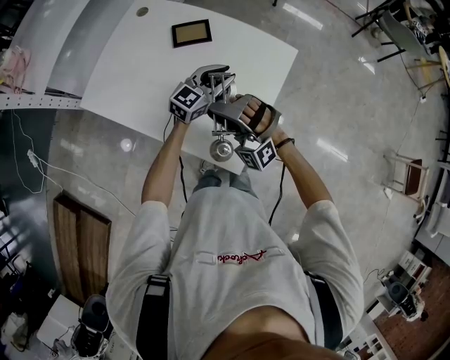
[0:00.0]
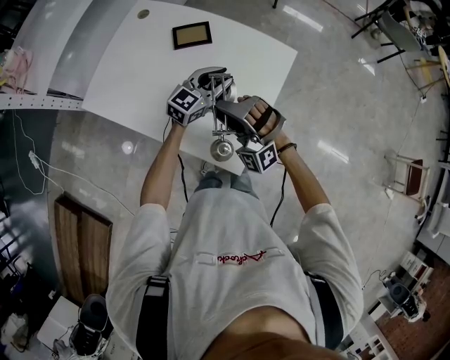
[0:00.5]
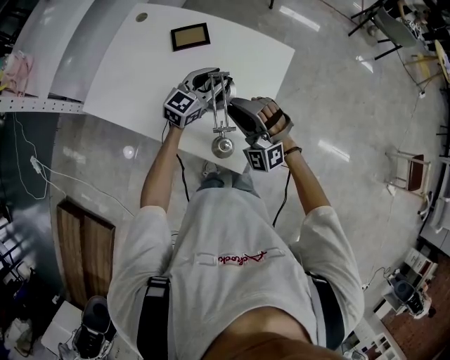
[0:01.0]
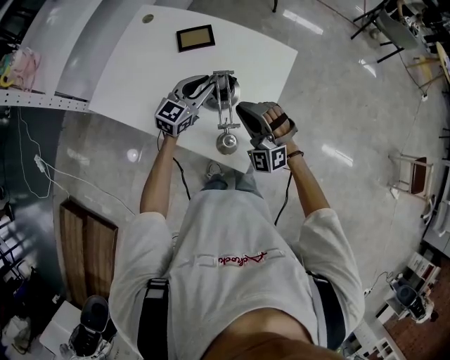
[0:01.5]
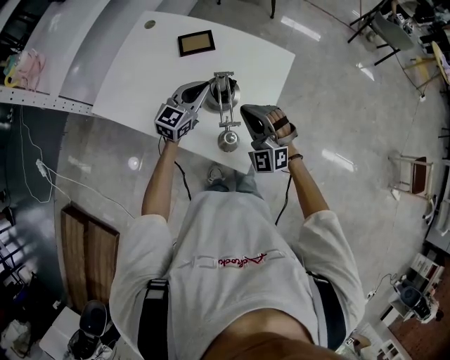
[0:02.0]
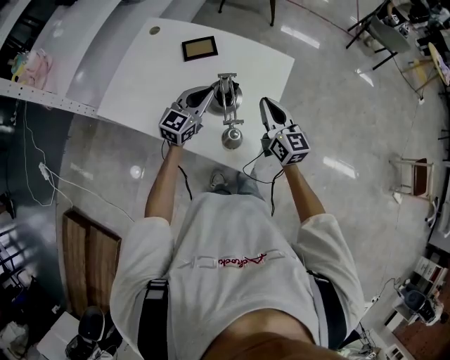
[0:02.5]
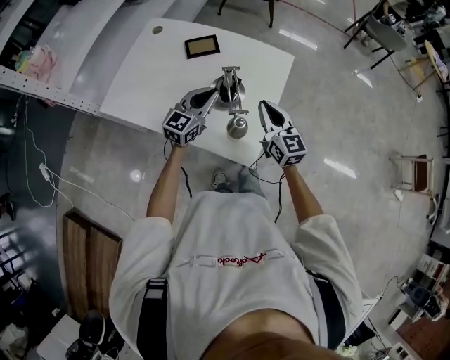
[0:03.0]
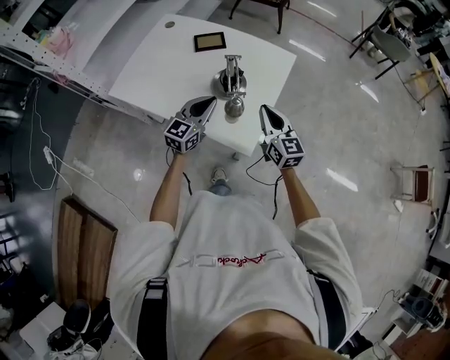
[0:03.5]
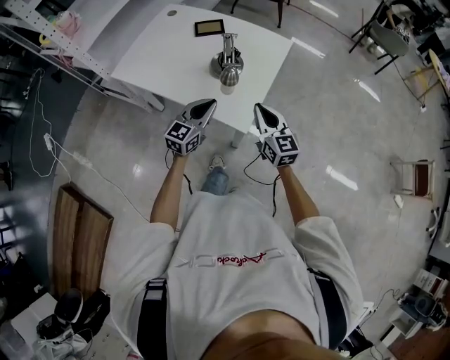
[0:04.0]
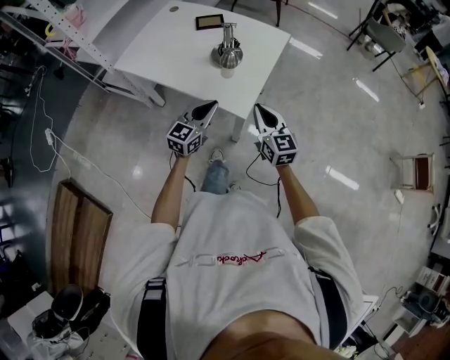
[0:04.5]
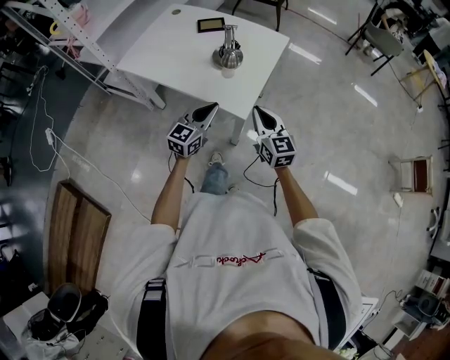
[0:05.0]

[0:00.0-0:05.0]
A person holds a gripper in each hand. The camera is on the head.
0:00.0 to 0:02.5: The right gripper shifts about 15 cm to the right, twists approximately 90 degrees clockwise, seen from behind, and closes its fingers. Meanwhile the left gripper moves to the left and backward, some 10 cm, and closes up.
0:02.5 to 0:05.0: Both grippers travel together backward, approximately 25 cm.

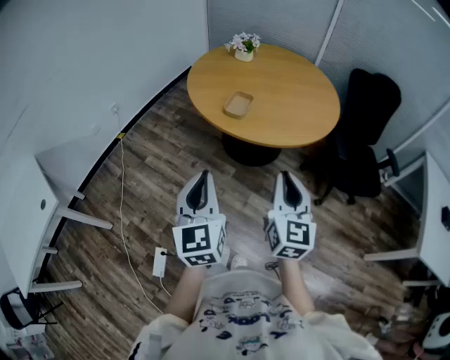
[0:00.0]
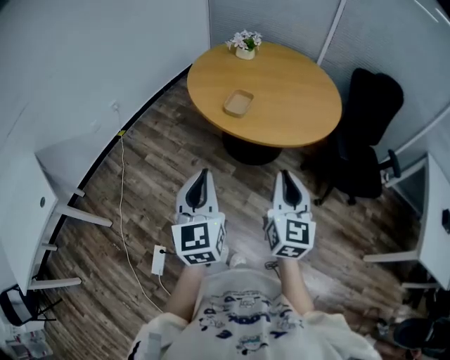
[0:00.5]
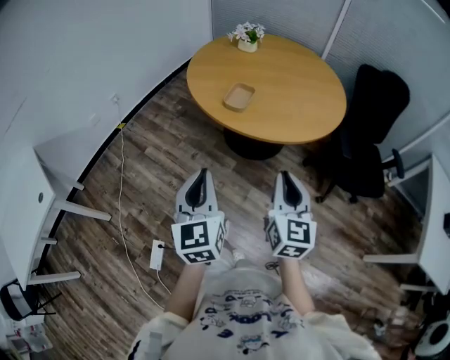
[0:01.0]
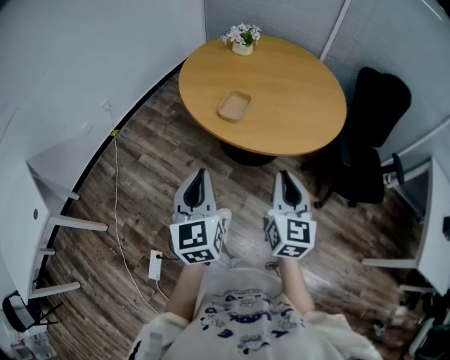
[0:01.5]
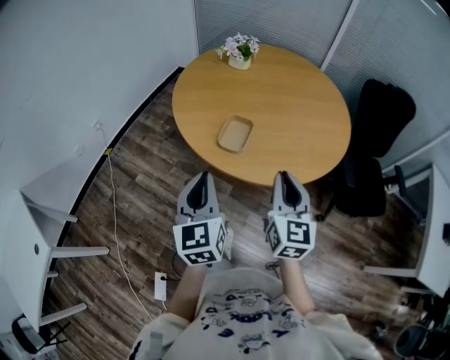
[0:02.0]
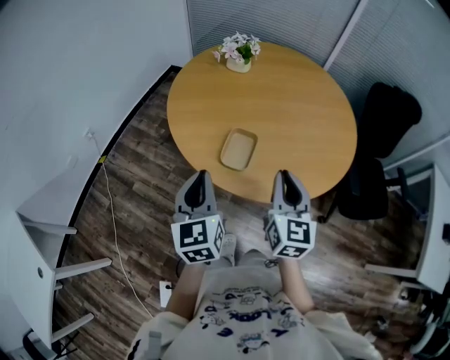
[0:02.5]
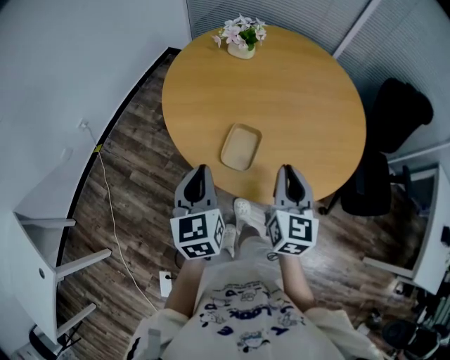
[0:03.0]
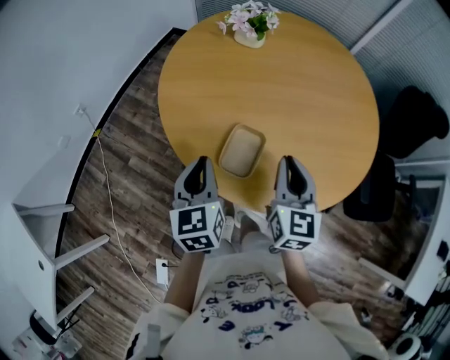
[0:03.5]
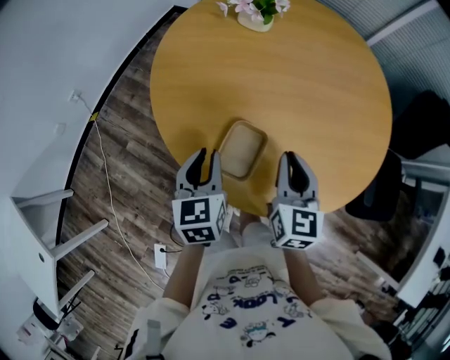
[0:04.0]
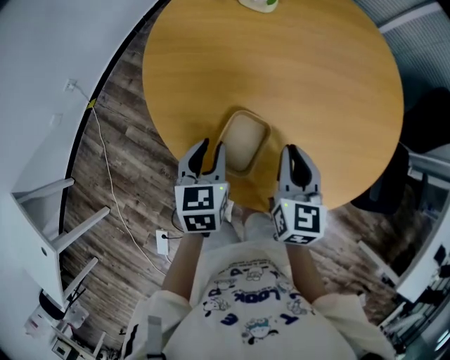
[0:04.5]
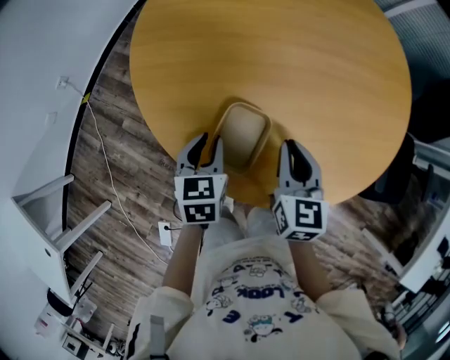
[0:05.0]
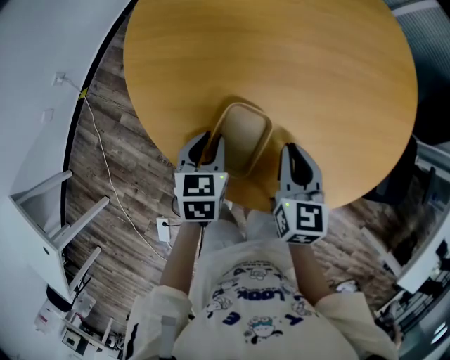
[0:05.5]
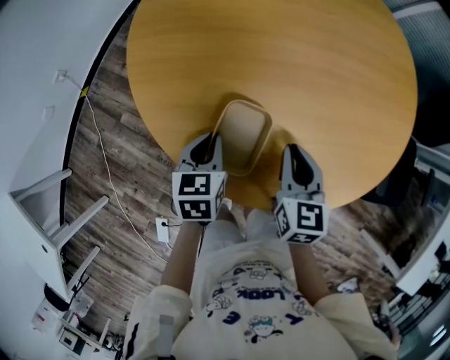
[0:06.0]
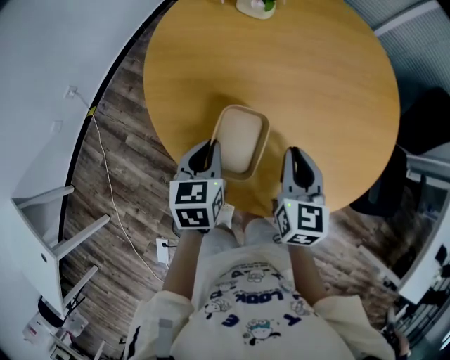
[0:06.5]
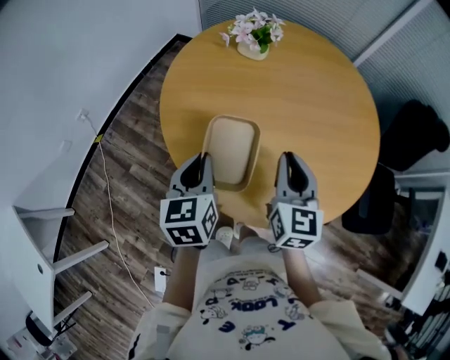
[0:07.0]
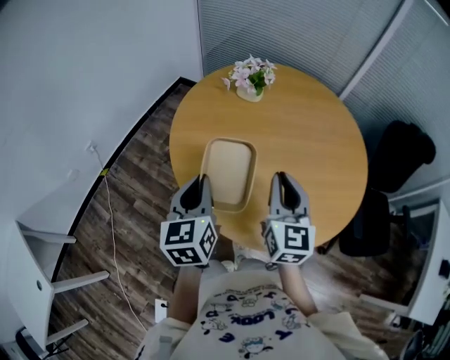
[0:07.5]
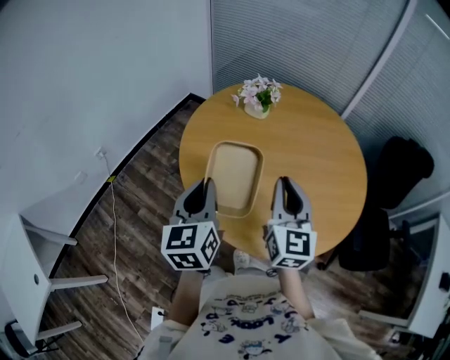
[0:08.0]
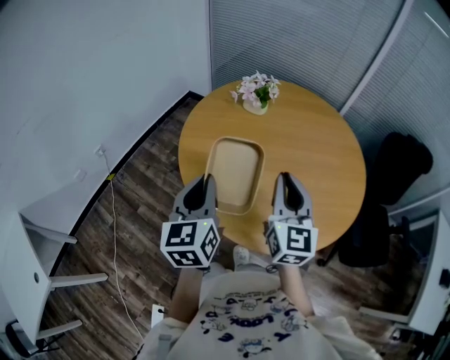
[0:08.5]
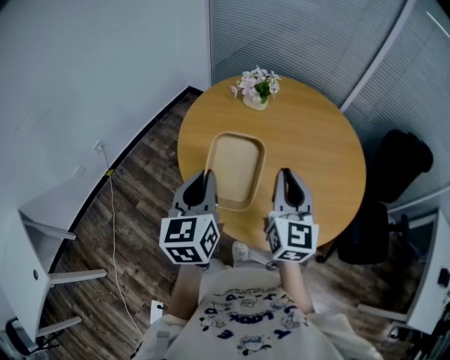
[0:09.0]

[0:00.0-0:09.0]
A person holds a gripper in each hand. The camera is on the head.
0:00.0 to 0:02.0: The grippers both shift forward by some 25 cm.
0:02.0 to 0:04.5: The grippers both shift forward and downward by about 30 cm. The left gripper changes its angle by roughly 30 degrees, and opens.
0:04.5 to 0:07.0: Both grippers travel together upward, some 10 cm.
0:07.0 to 0:09.0: Both grippers move upward, some 10 cm.

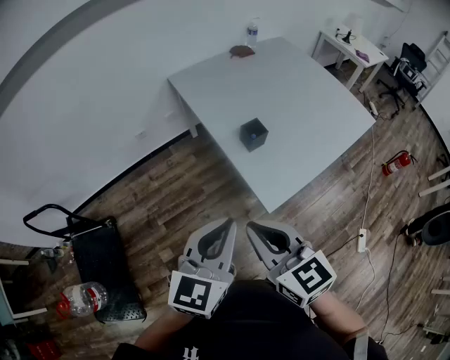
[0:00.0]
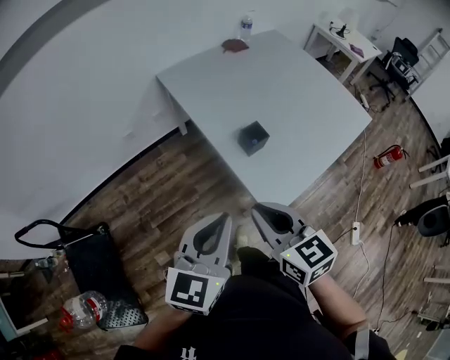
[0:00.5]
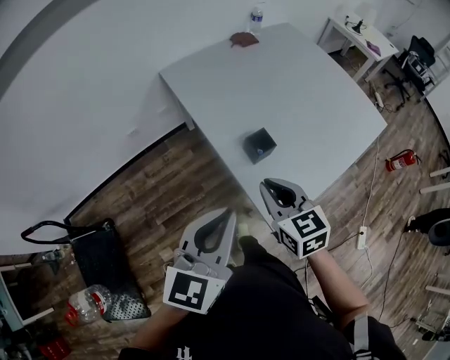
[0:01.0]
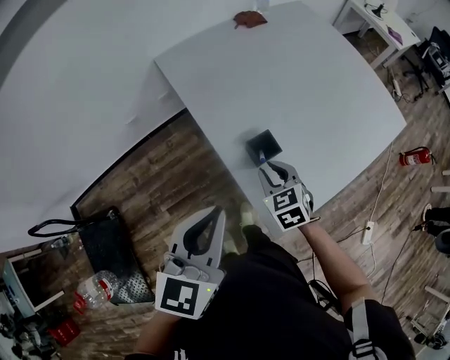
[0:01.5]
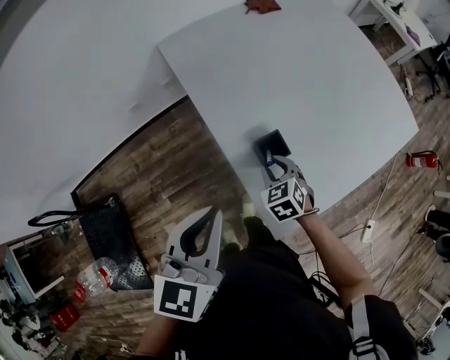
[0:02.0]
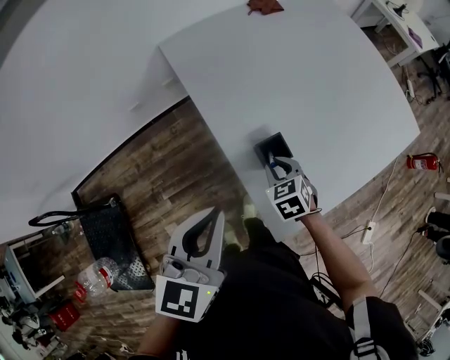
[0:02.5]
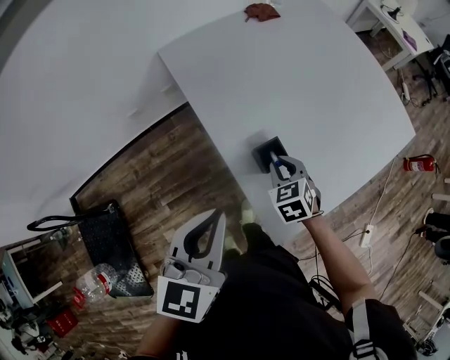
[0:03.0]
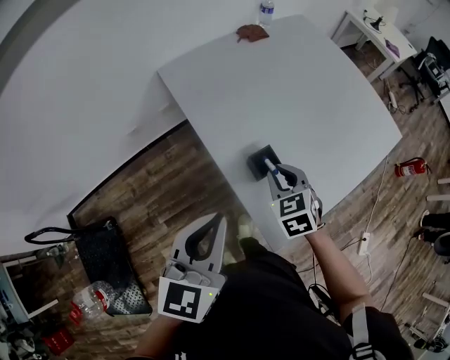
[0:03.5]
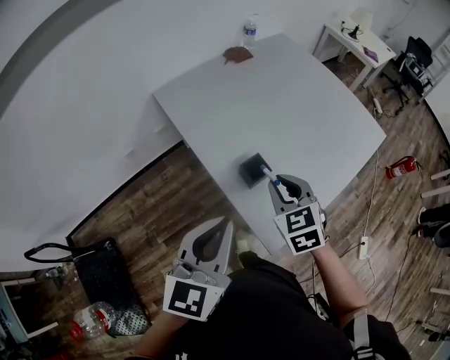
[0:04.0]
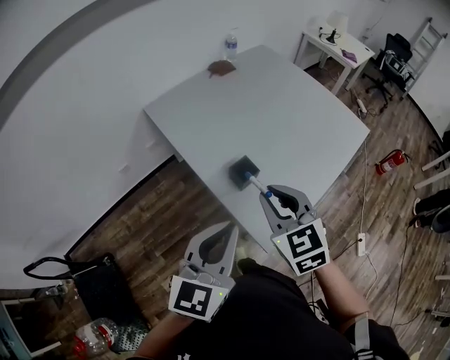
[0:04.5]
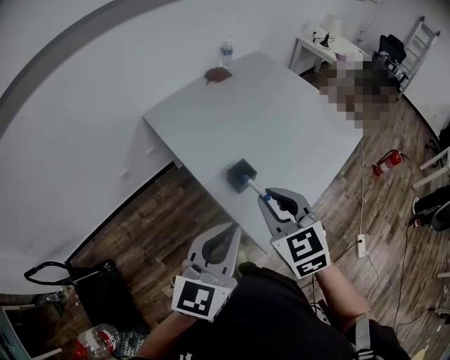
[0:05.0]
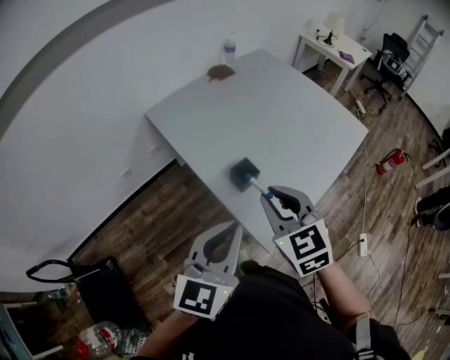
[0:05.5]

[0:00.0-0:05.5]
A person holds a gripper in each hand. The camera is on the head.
0:00.0 to 0:02.0: The left gripper heads forward, covering some 20 cm, while the right gripper goes some 40 cm forward and downward, tips its fingers downward by approximately 40 degrees, and opens its fingers.
0:02.0 to 0:03.5: The right gripper shifts approximately 10 cm upward.
0:03.5 to 0:05.5: The left gripper goes about 10 cm to the right and backward. The right gripper goes roughly 20 cm upward and backward.

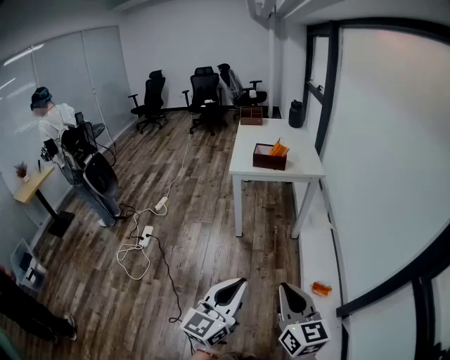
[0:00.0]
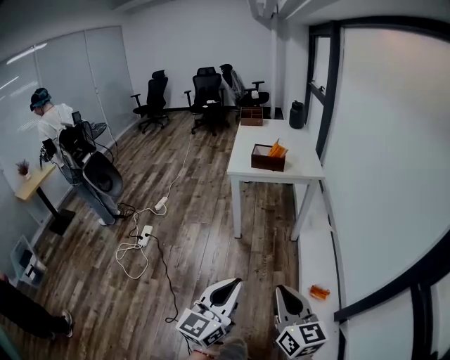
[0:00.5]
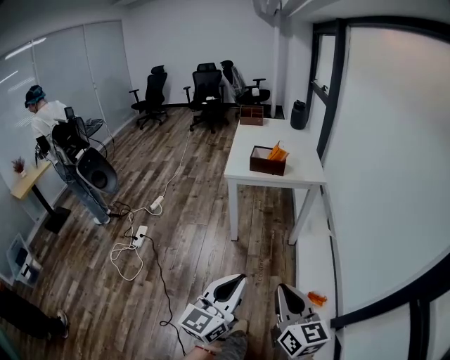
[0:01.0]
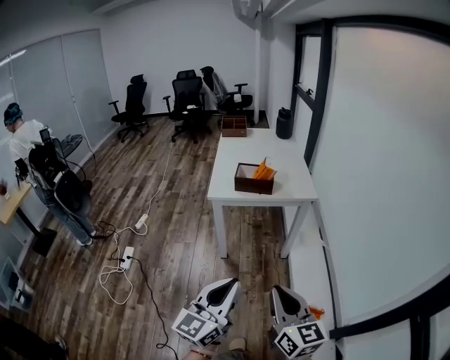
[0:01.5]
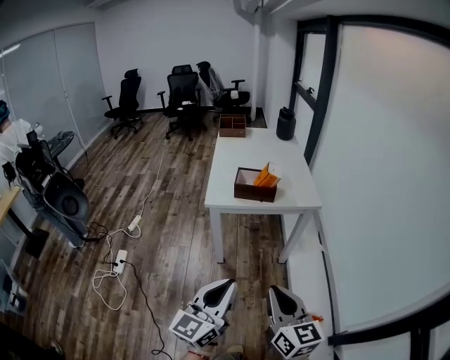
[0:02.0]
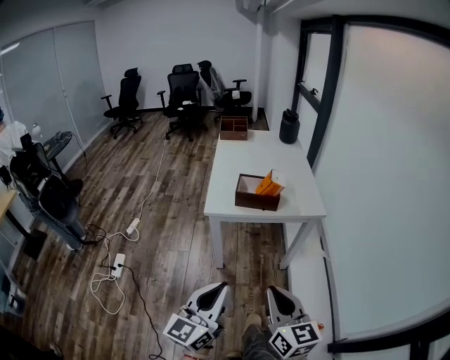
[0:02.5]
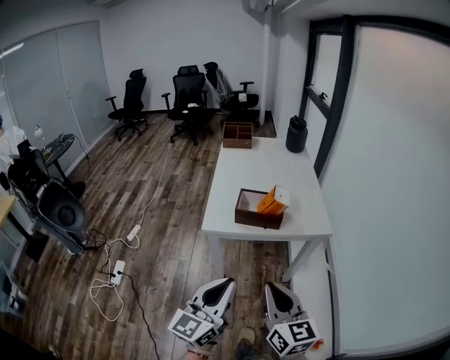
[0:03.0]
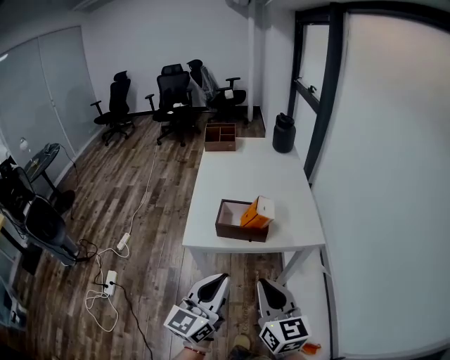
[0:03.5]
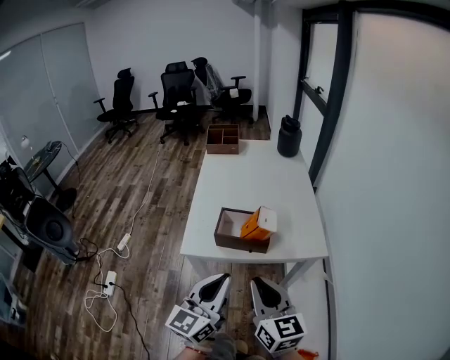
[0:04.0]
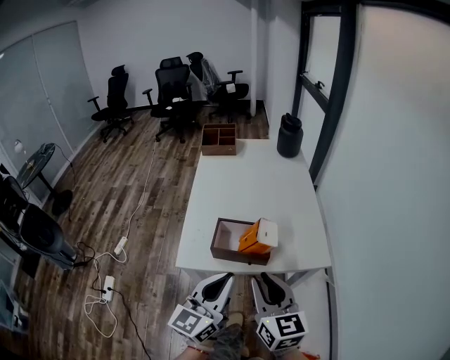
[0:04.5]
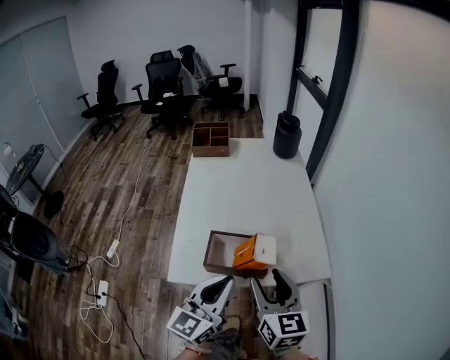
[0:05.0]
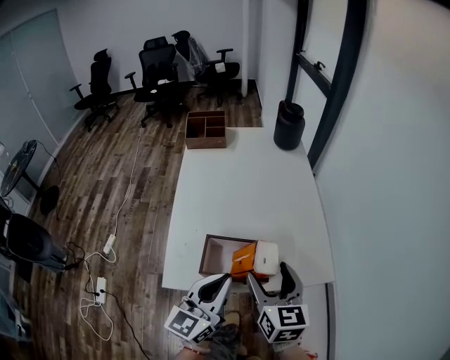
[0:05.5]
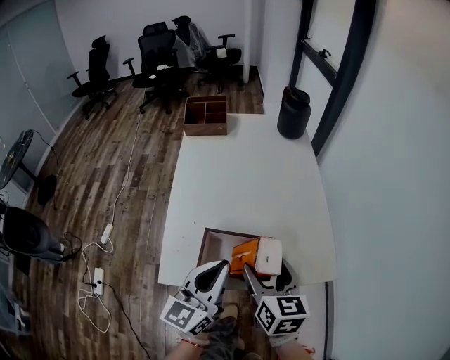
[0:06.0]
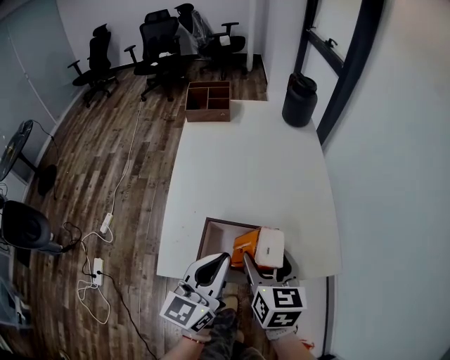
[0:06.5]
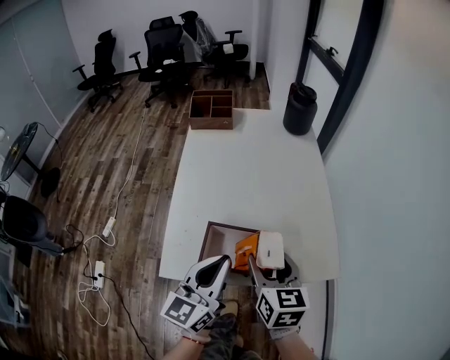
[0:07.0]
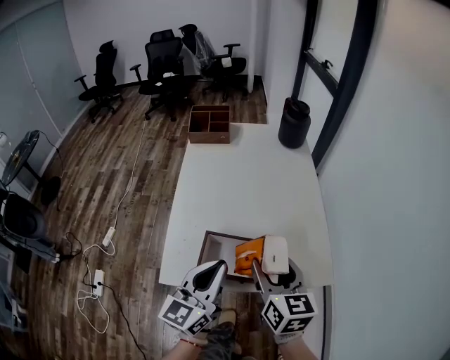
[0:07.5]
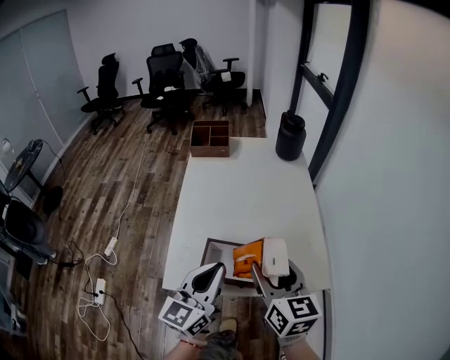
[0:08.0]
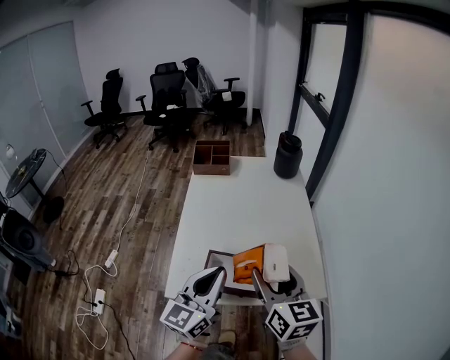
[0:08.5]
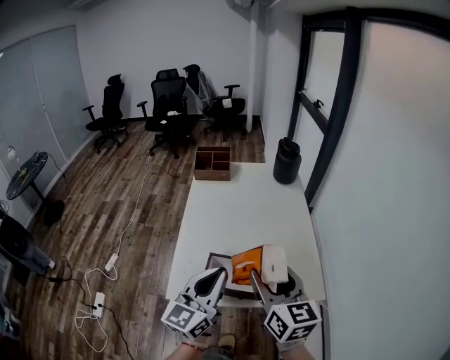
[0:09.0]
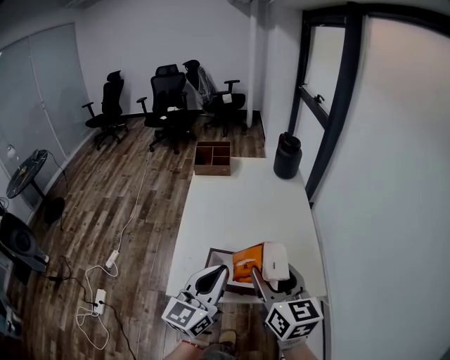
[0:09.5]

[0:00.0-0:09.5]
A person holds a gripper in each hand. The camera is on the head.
0:00.0 to 0:02.0: The grippers both shift forward by some 30 cm.
0:02.0 to 0:04.0: Both grippers travel together forward, about 30 cm.
0:04.0 to 0:05.5: Both grippers travel together forward, approximately 20 cm. The right gripper opens its fingers.
0:05.5 to 0:07.5: The grippers stay close to where they were, moving slightly.
0:07.5 to 0:09.5: The two grippers go approximately 10 cm upward.
